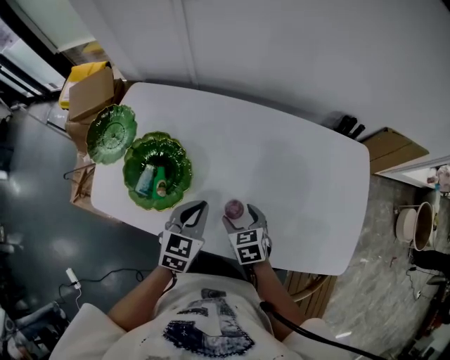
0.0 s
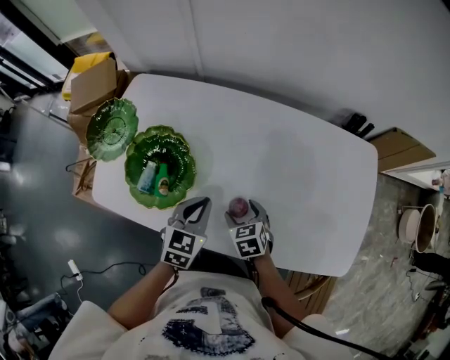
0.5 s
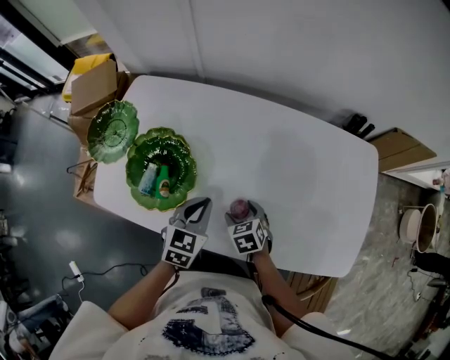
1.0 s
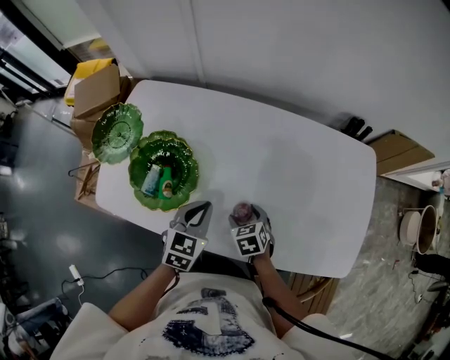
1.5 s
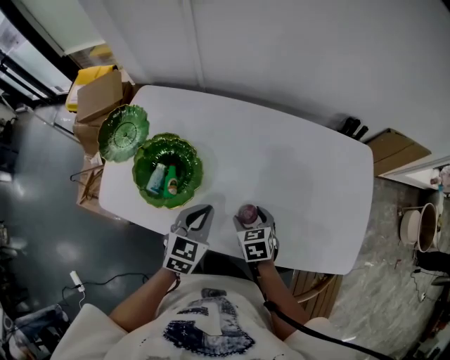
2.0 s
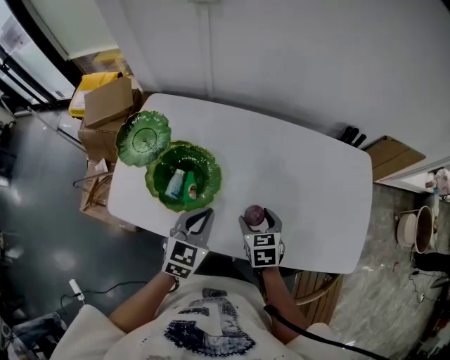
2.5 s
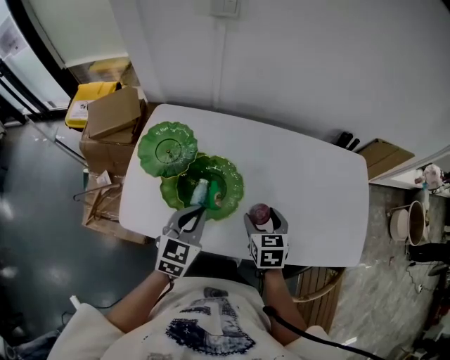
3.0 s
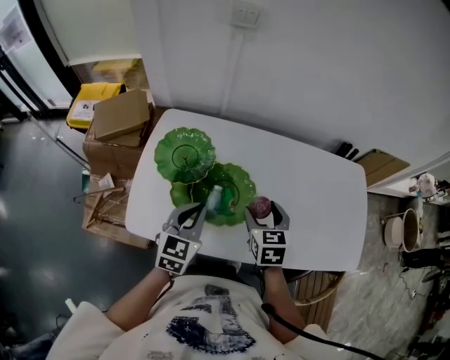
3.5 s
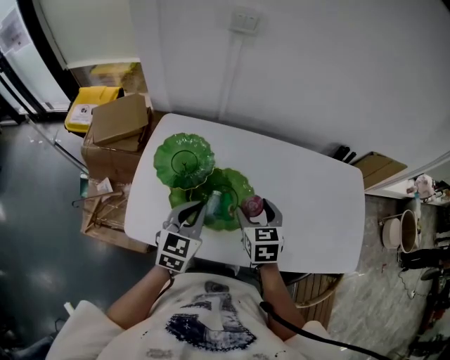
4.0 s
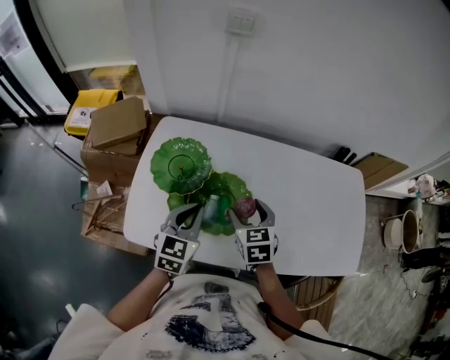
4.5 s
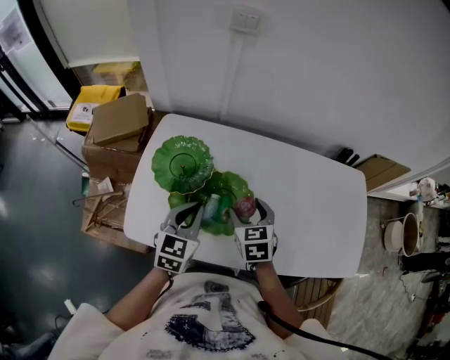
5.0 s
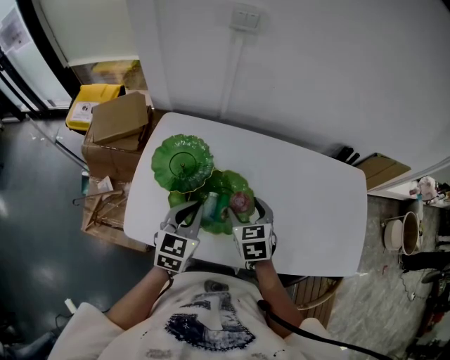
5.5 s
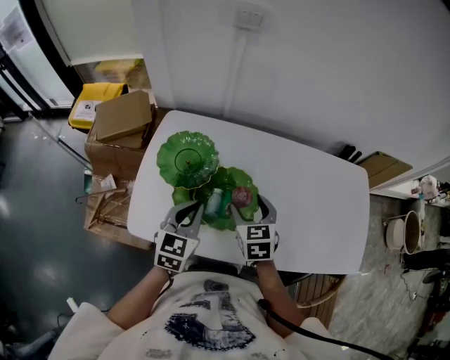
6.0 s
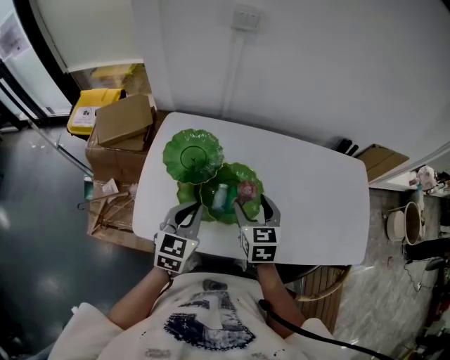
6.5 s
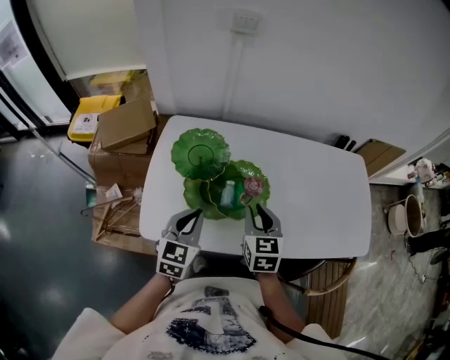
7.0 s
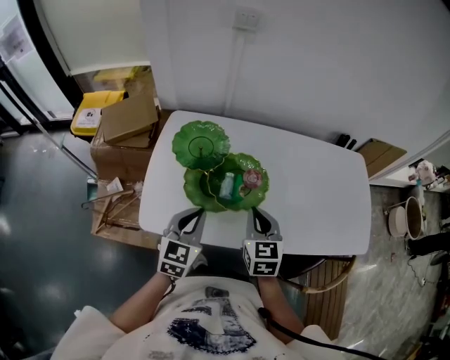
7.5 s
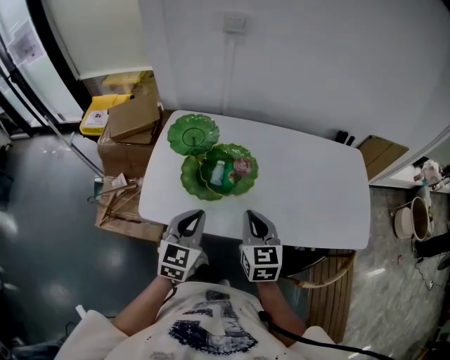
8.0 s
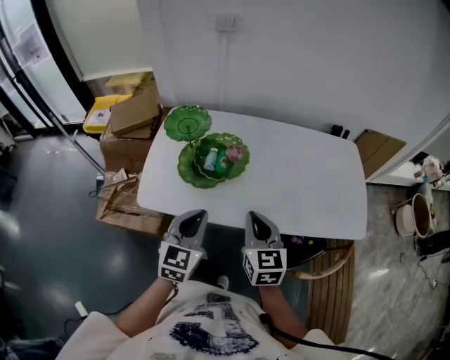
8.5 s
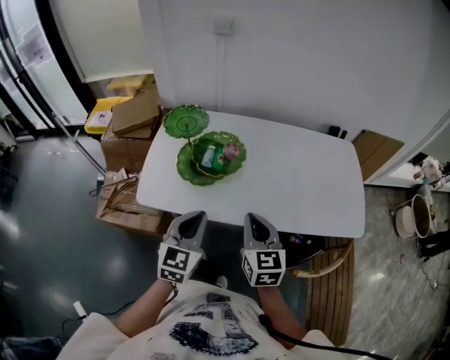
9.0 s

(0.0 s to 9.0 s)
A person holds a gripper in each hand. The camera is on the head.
0.0 s - 2.0 s: There are only small adjustments of the grippers.
2.0 s - 4.5 s: The left gripper goes approximately 20 cm to the left. Meanwhile the right gripper heads to the left and upward, covering about 25 cm.
4.5 s - 7.0 s: The right gripper is displaced backward by roughly 5 cm, and closes. Meanwhile the left gripper moves backward and to the left, approximately 10 cm.
7.0 s - 9.0 s: The grippers both shift backward and to the right by some 20 cm.

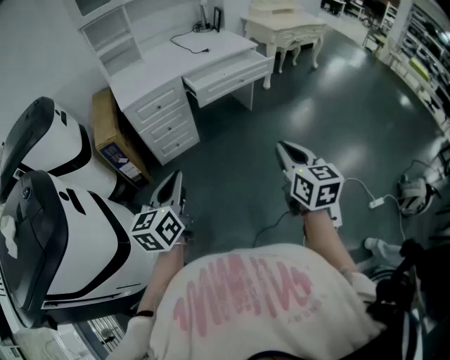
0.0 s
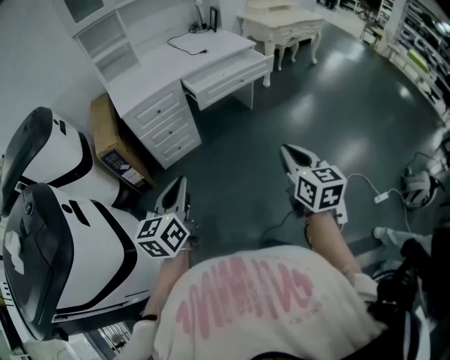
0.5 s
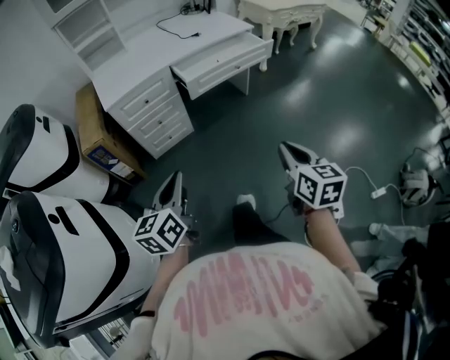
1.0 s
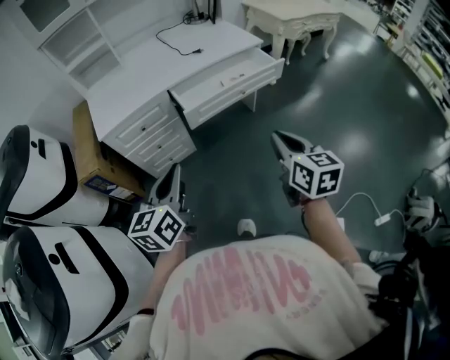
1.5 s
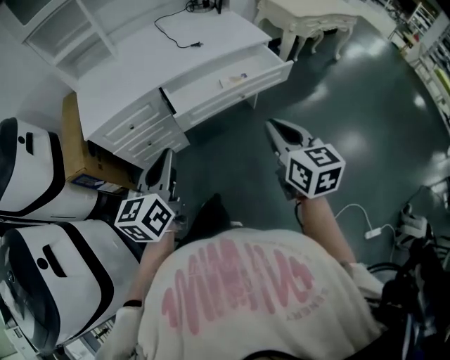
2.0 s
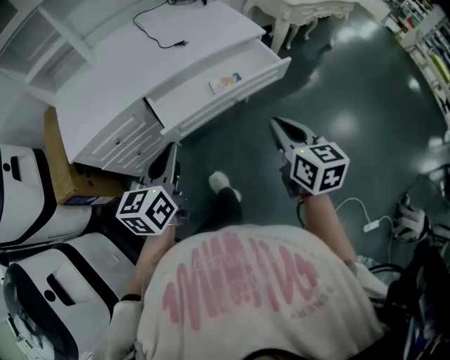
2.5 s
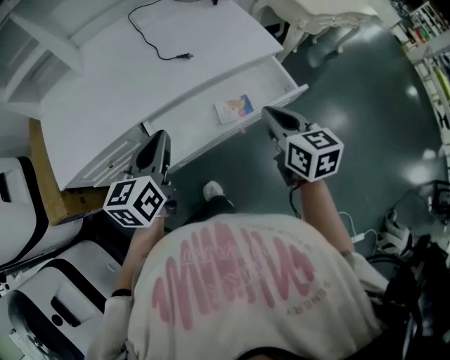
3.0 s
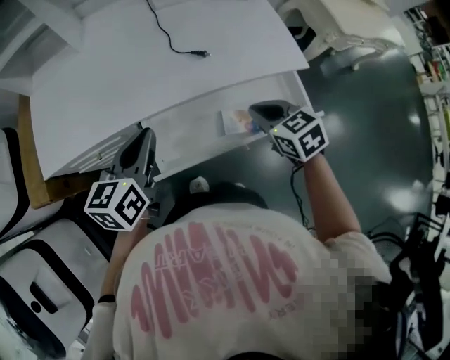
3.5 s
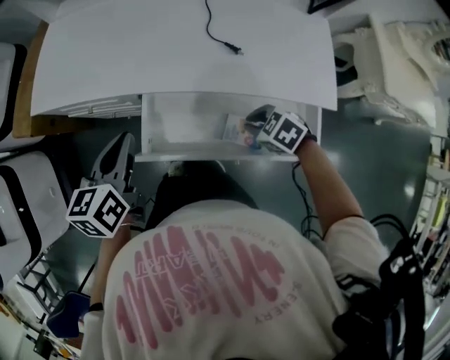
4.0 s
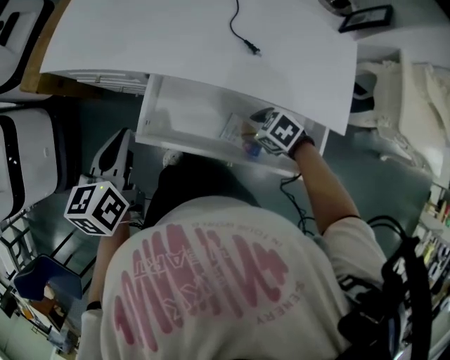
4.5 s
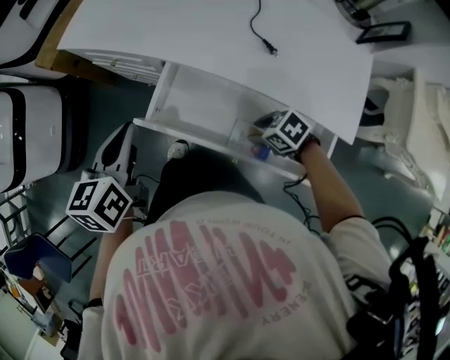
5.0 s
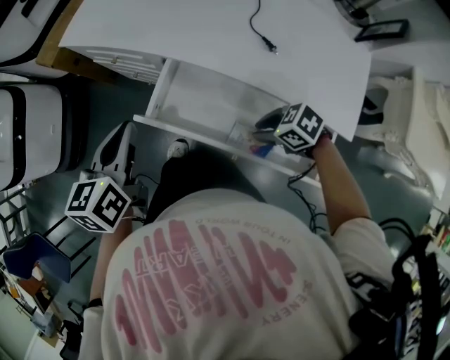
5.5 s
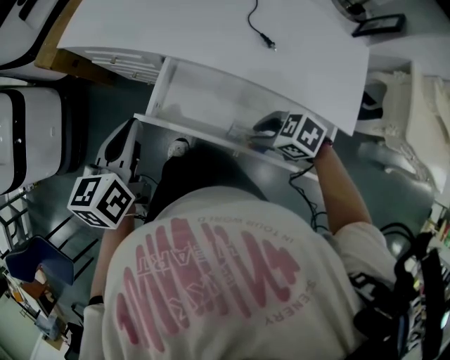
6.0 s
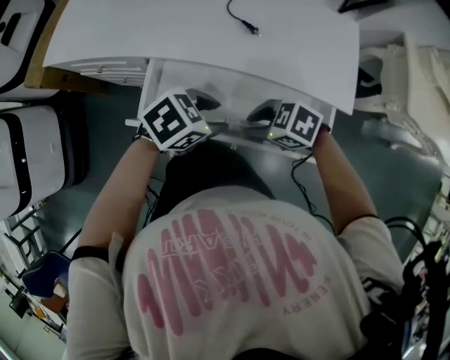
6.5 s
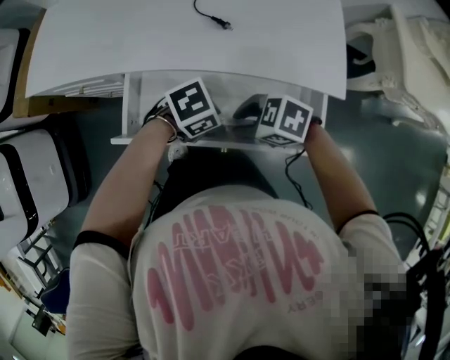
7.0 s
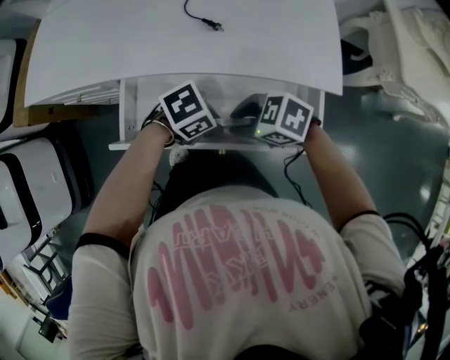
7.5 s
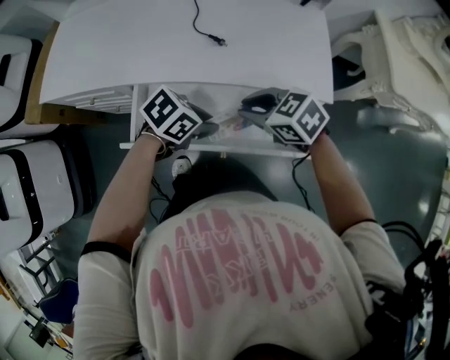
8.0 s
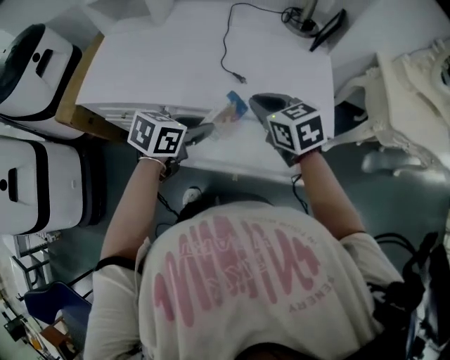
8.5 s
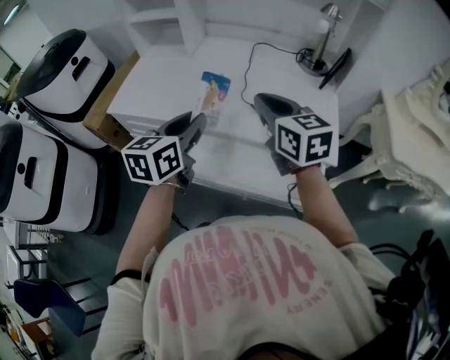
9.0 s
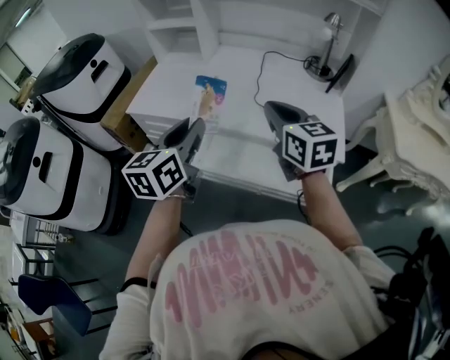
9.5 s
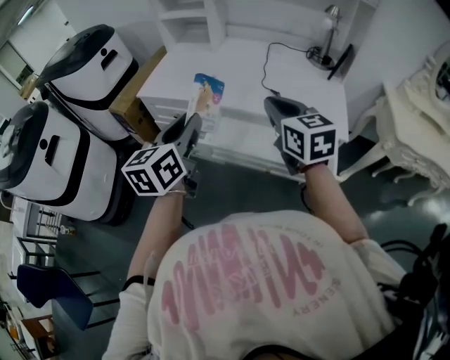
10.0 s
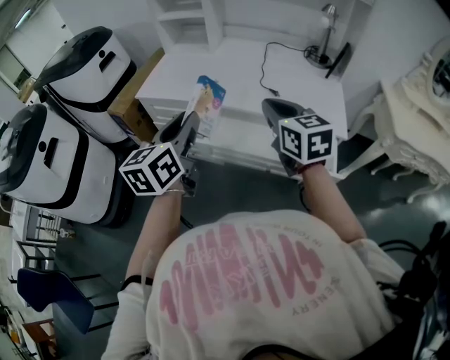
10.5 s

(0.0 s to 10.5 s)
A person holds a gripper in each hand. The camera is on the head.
0.0 s - 2.0 s: The grippers both shift forward by approximately 40 cm.
2.0 s - 4.0 s: The left gripper moves some 30 cm, and swivels some 30 degrees, while the right gripper changes place by some 50 cm, and points its fingers roughly 50 degrees further downward.
4.0 s - 6.5 s: The left gripper ends up about 25 cm from where it was, rotates some 60 degrees, and opens up. The right gripper changes place by roughly 5 cm, turns by about 20 degrees, and opens, then closes once more.
6.5 s - 8.5 s: The right gripper travels upward by approximately 15 cm, and turns by some 50 degrees. Meanwhile the left gripper goes about 10 cm upward, changes its angle by about 30 degrees, and closes.
8.5 s - 10.5 s: The right gripper shifts some 20 cm upward, backward and to the left. The left gripper shifts approximately 30 cm upward, to the left and backward, and points its fingers approximately 30 degrees further upward.

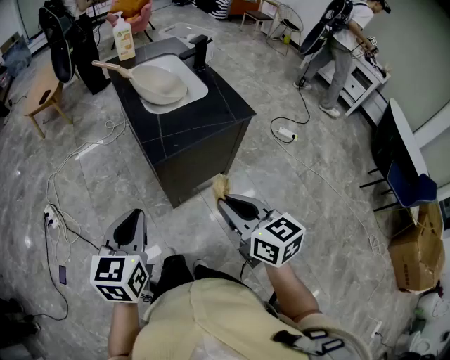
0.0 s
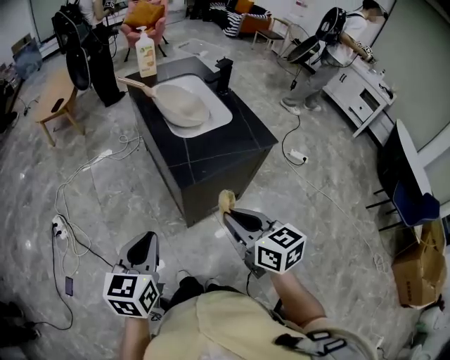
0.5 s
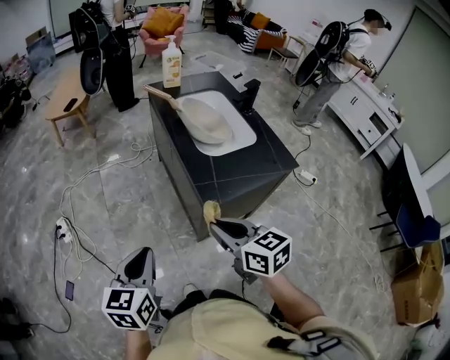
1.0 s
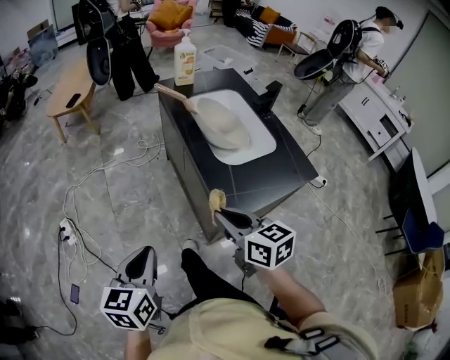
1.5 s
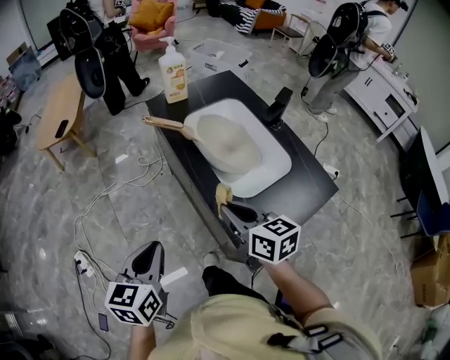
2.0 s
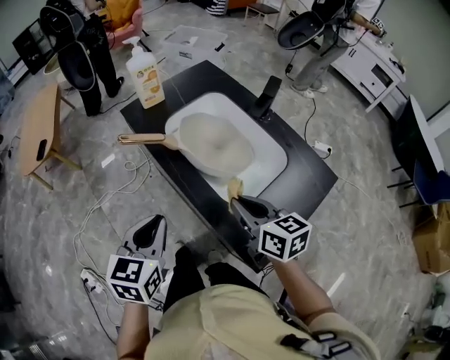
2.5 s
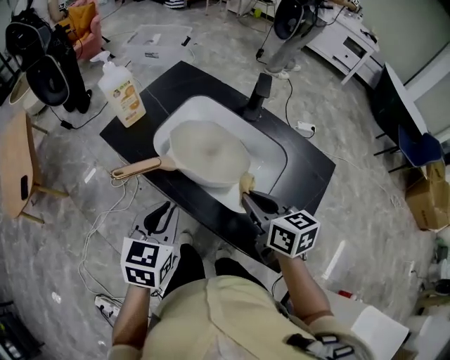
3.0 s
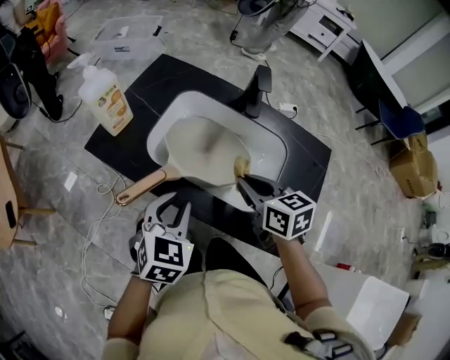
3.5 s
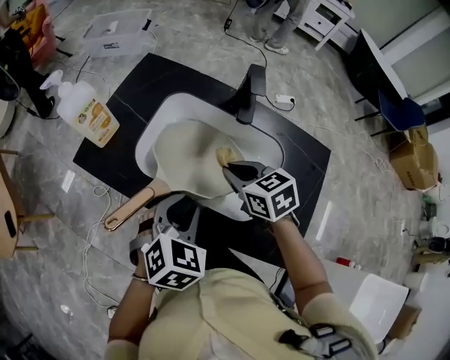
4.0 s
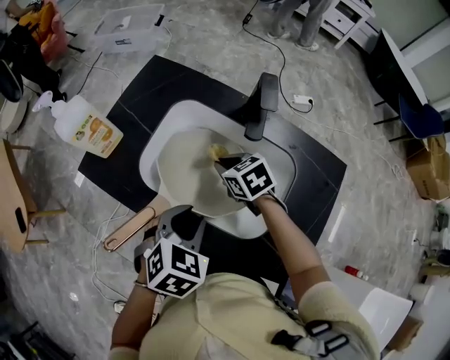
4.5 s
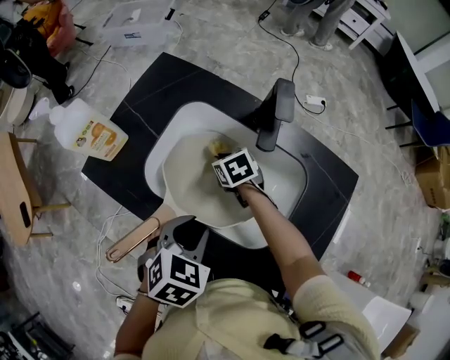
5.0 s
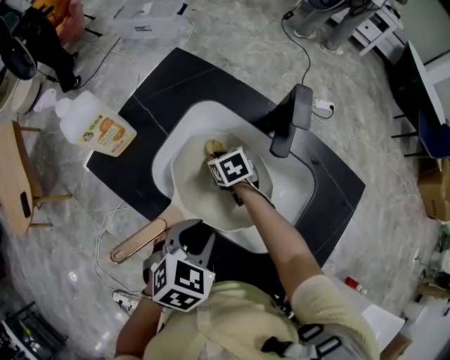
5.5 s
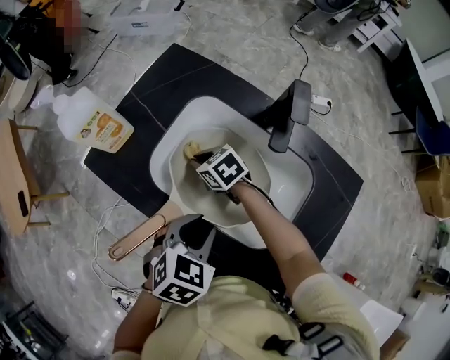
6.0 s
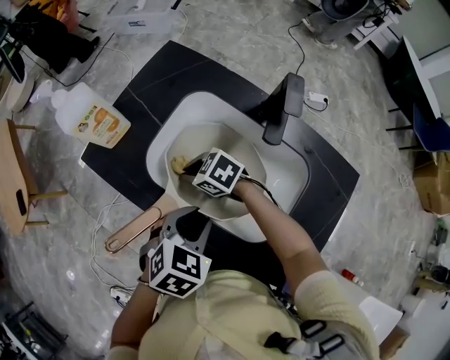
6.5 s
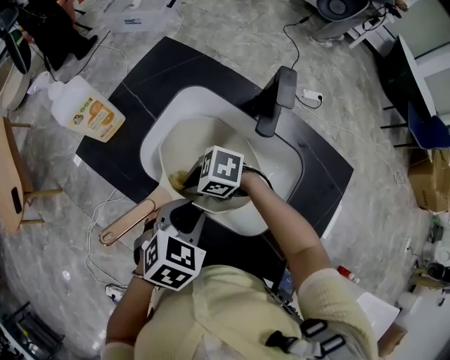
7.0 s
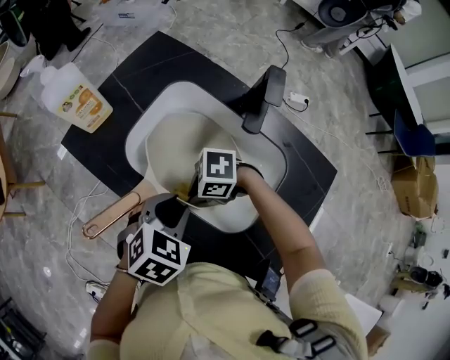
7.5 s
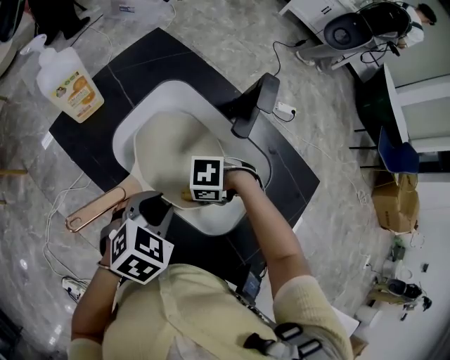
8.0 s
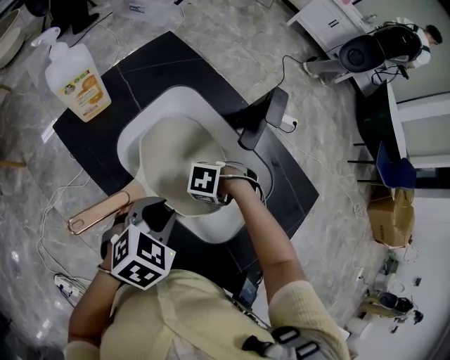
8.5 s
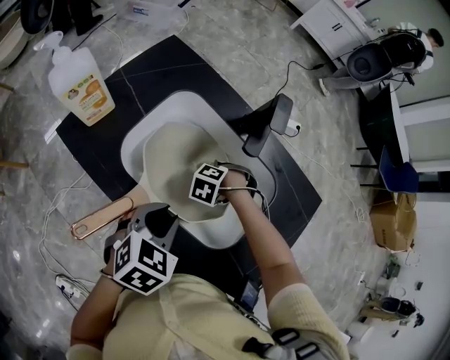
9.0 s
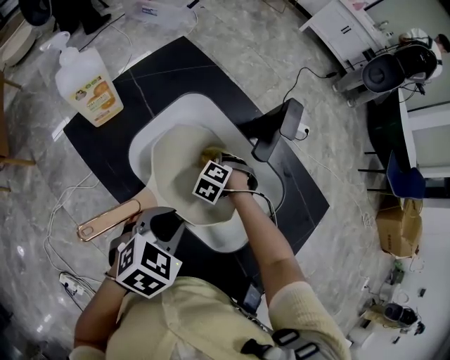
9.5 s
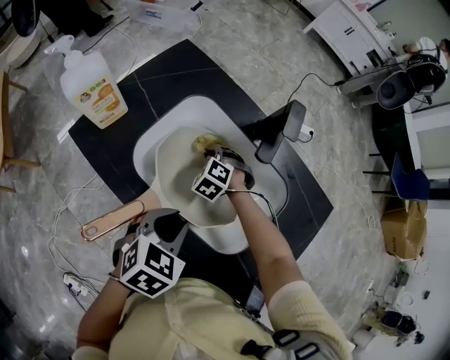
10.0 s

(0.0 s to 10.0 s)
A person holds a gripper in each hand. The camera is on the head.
0.0 s - 2.0 s: Both grippers move forward and to the left, approximately 40 cm.
2.0 s - 4.0 s: The right gripper ends up some 30 cm from where it was, and rotates approximately 30 degrees, while the left gripper changes place by some 35 cm, turns by about 70 degrees, and opens its fingers.
4.0 s - 6.0 s: The left gripper shifts by approximately 5 cm. The right gripper shifts approximately 20 cm downward, to the left and forward, and rotates some 20 degrees.
6.0 s - 8.0 s: The right gripper ends up about 20 cm from where it was, and turns by about 60 degrees.
8.0 s - 10.0 s: The right gripper moves roughly 20 cm, and turns by approximately 60 degrees.
